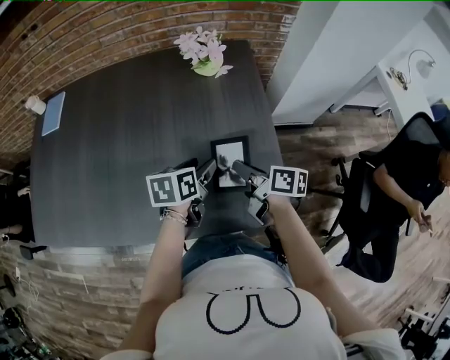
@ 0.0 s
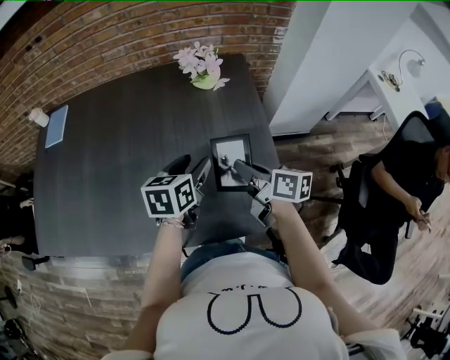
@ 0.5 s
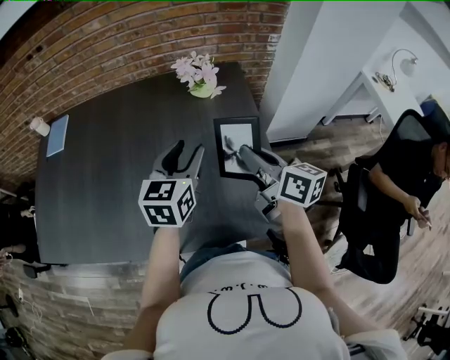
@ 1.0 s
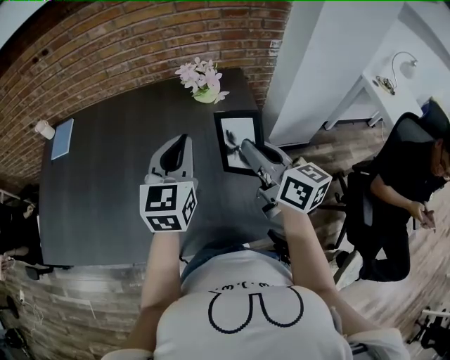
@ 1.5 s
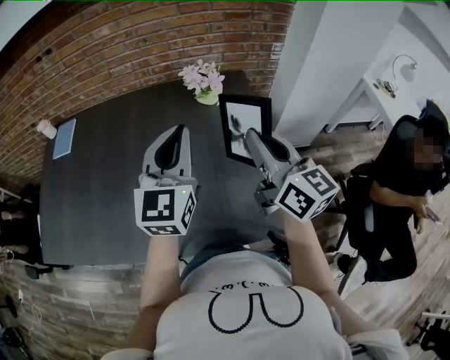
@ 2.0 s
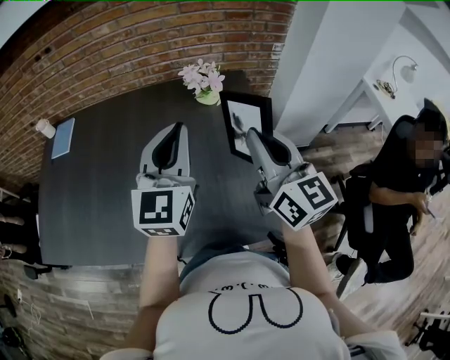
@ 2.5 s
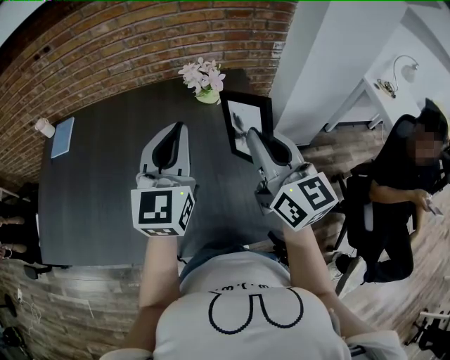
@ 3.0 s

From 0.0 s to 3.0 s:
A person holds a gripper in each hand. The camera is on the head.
From 0.0 s to 1.5 s: Both grippers move upward, some 20 cm. The left gripper angles its fingers upward, by about 30 degrees, and closes. The right gripper turns by roughly 40 degrees.
From 1.5 s to 3.0 s: The grippers both shift upward by some 5 cm. The right gripper turns by about 20 degrees.

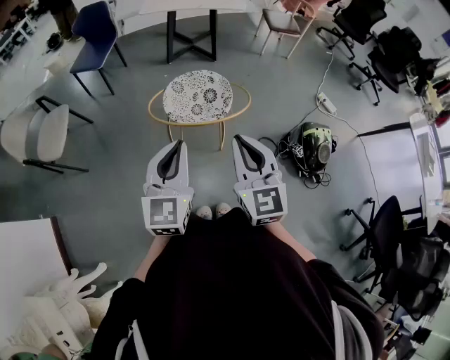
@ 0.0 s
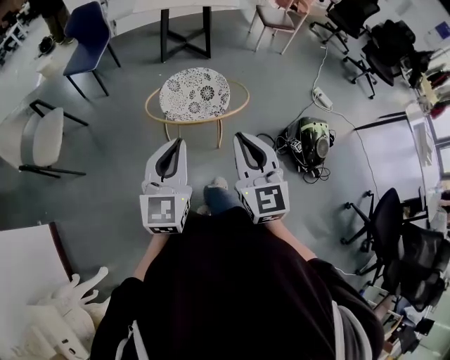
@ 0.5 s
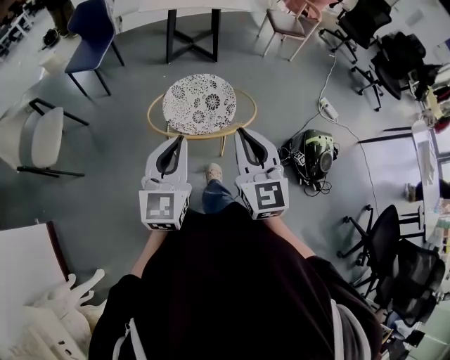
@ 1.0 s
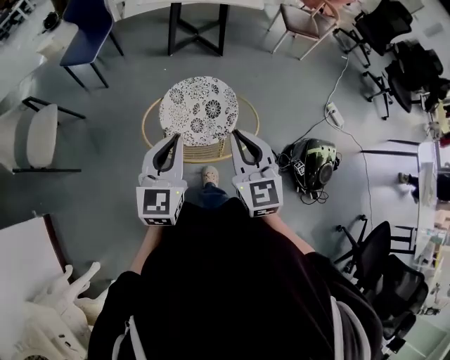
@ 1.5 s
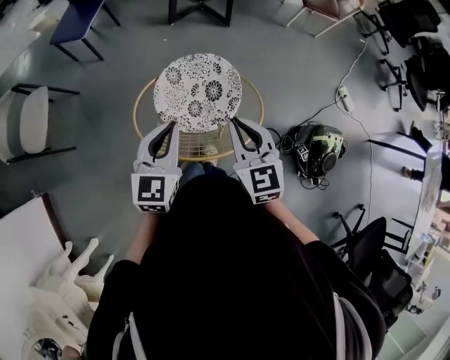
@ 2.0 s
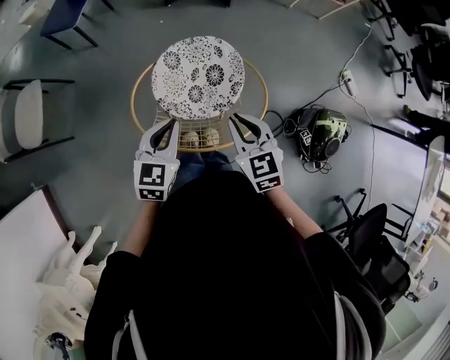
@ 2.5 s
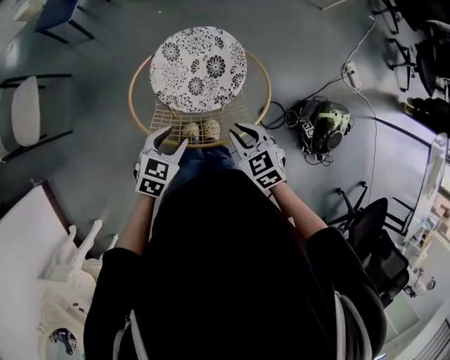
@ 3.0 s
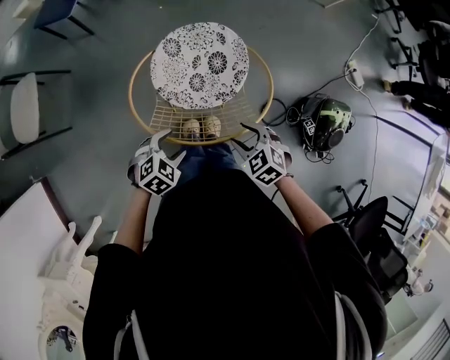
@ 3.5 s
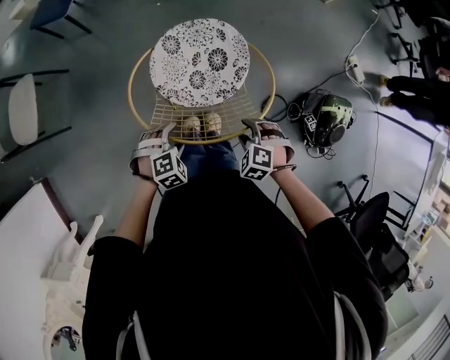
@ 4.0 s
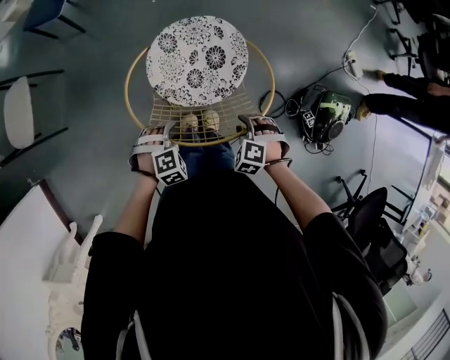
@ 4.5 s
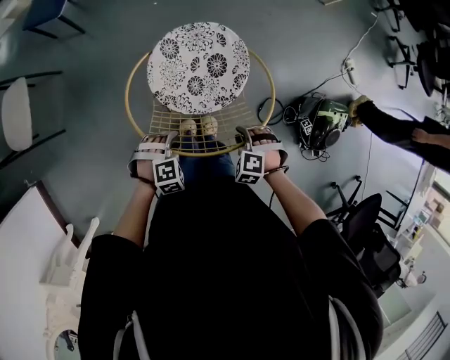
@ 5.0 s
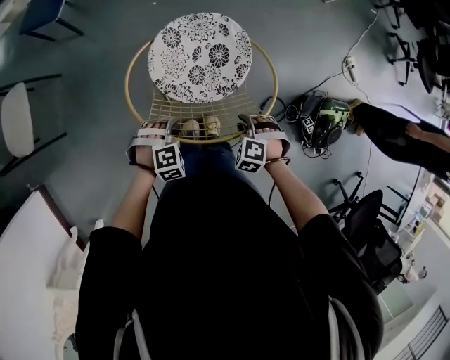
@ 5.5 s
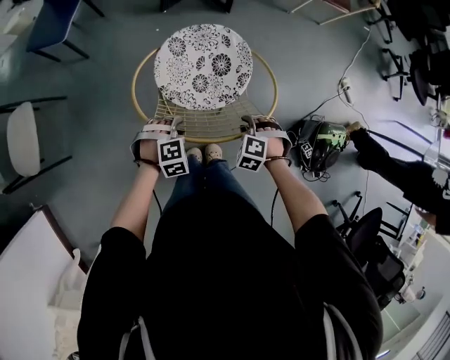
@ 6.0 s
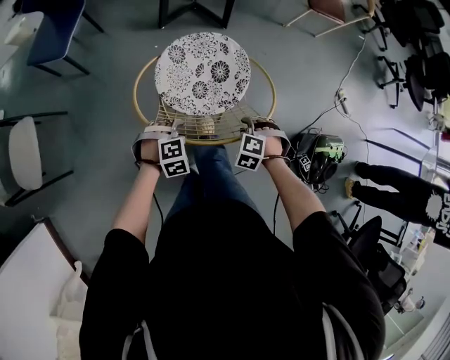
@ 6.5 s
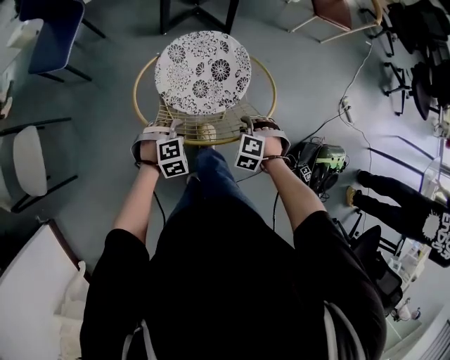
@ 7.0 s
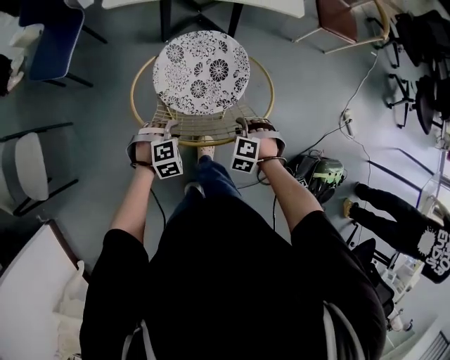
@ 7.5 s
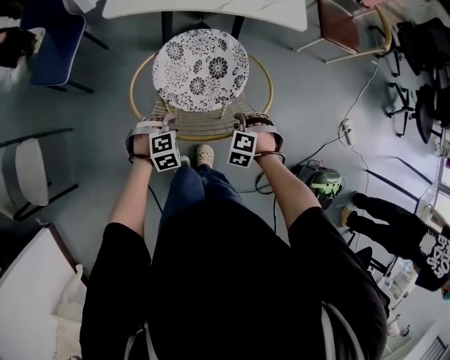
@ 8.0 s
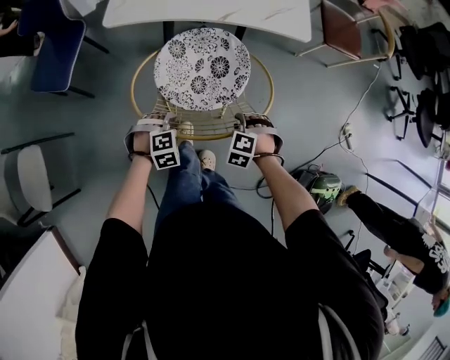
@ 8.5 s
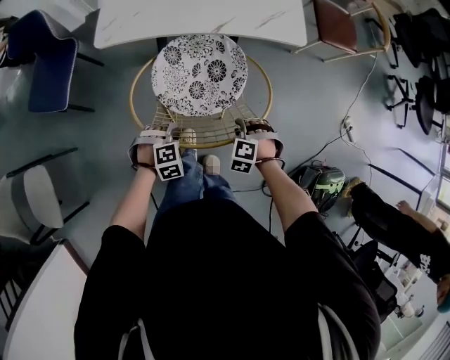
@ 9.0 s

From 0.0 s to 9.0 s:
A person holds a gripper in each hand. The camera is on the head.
From 0.0 s to 2.0 s: The two grippers go about 30 cm forward and downward. The right gripper swivels roughly 20 degrees.
From 2.0 s to 4.5 s: Both grippers move downward, some 25 cm. The right gripper angles its fingers downward, by approximately 50 degrees, and opens up, while the left gripper tilts its fingers some 50 degrees downward, and opens its fingers.
From 4.5 s to 7.0 s: The right gripper moves approximately 30 cm. The left gripper shifts by about 30 cm.
From 7.0 s to 9.0 s: Both grippers travel together forward, roughly 15 cm.

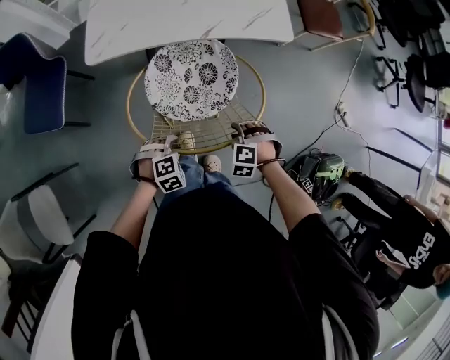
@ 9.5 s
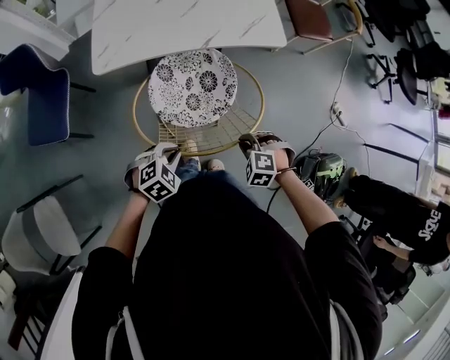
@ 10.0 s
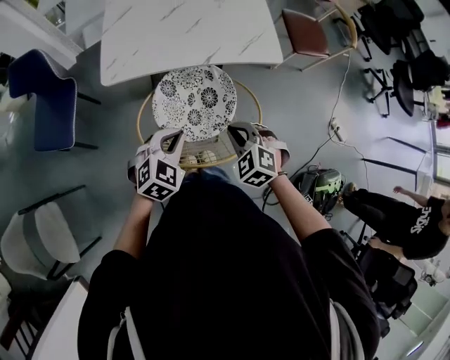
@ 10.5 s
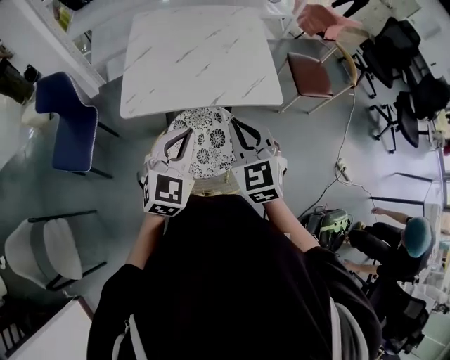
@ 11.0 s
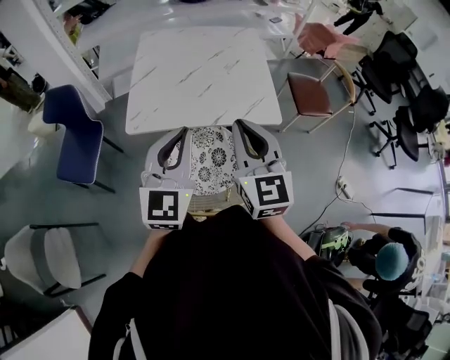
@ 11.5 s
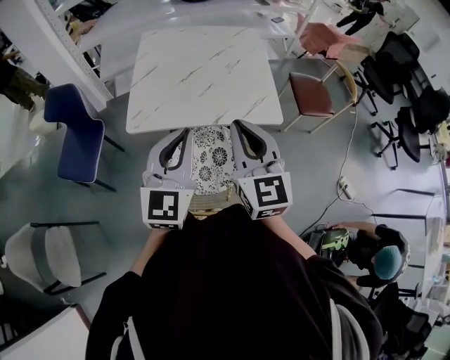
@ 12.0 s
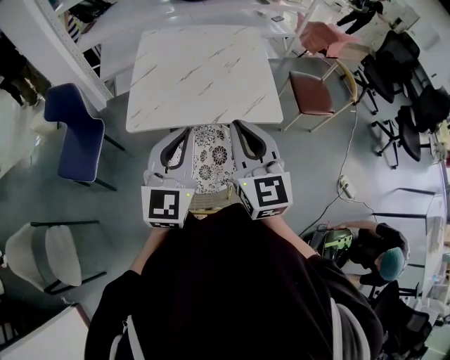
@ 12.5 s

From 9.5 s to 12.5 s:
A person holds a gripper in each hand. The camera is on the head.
From 9.5 s to 11.0 s: The left gripper goes approximately 40 cm upward and forward, points its fingers roughly 50 degrees further upward, and closes up; the right gripper shifts some 40 cm upward, tilts its fingers approximately 60 degrees upward, and closes up.
From 11.0 s to 12.5 s: Both grippers move upward, about 10 cm. The right gripper turns by about 20 degrees; the left gripper changes its angle by roughly 20 degrees.

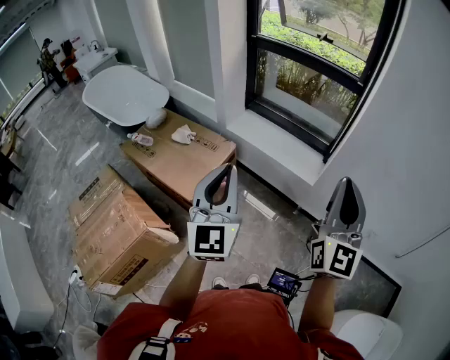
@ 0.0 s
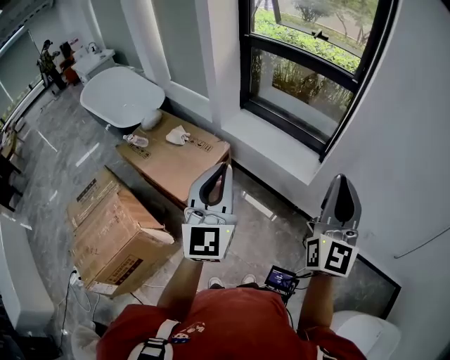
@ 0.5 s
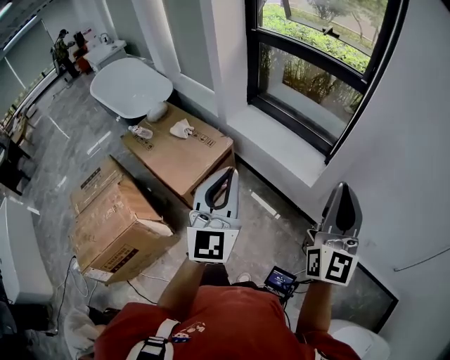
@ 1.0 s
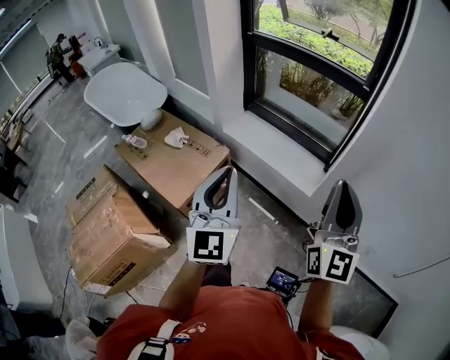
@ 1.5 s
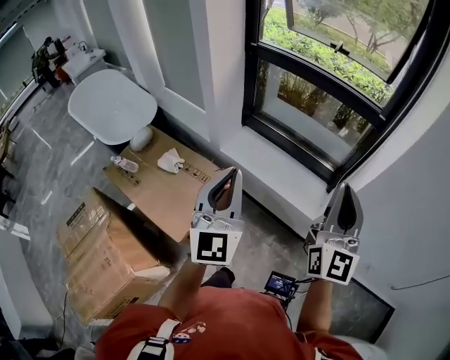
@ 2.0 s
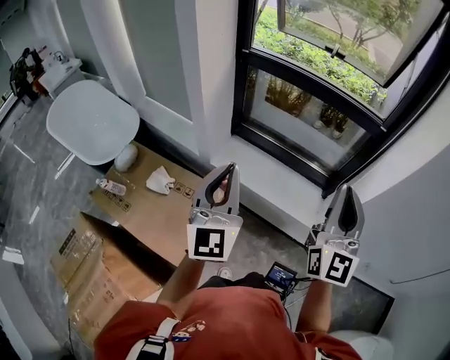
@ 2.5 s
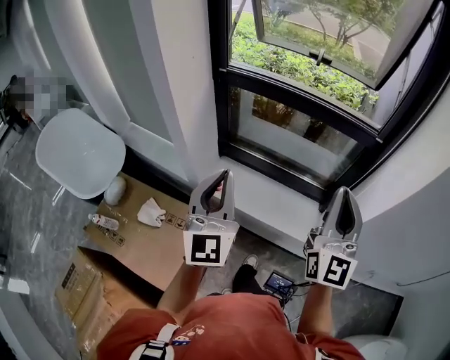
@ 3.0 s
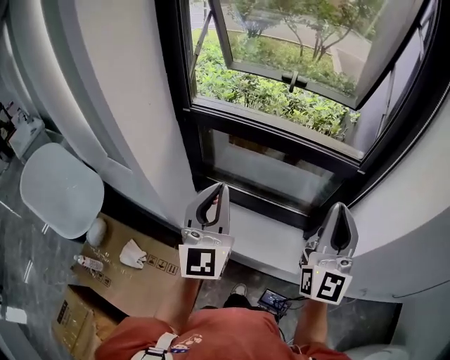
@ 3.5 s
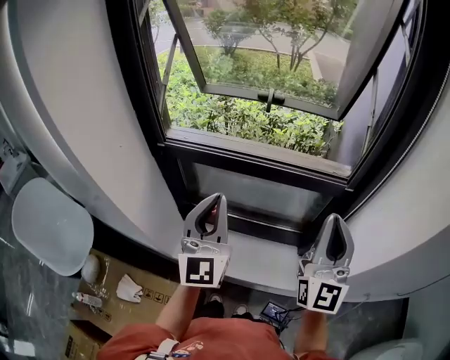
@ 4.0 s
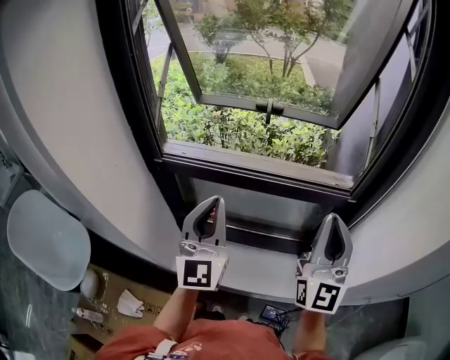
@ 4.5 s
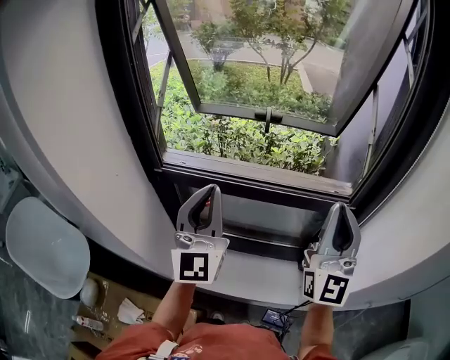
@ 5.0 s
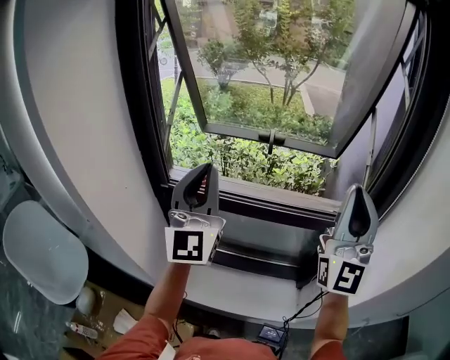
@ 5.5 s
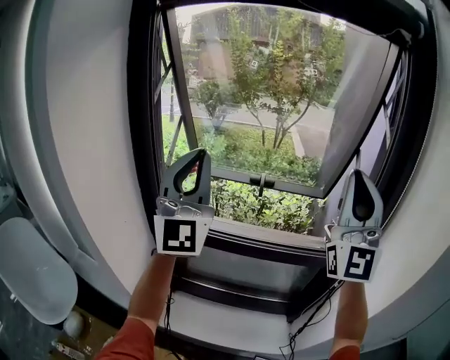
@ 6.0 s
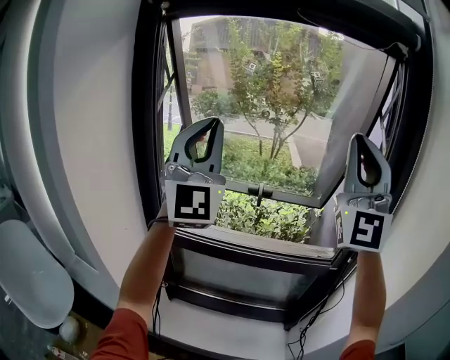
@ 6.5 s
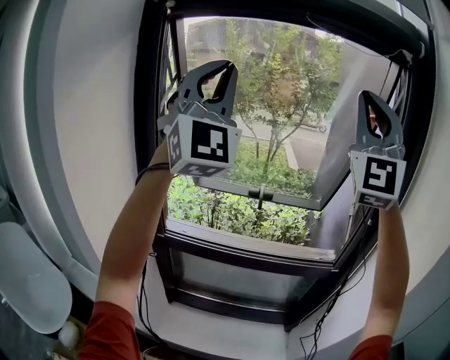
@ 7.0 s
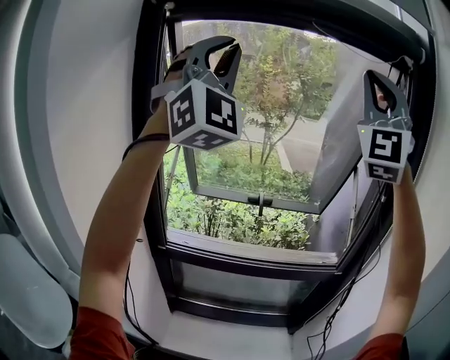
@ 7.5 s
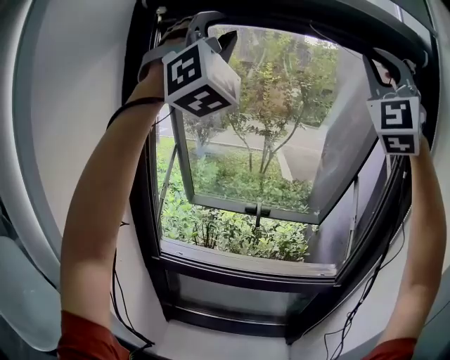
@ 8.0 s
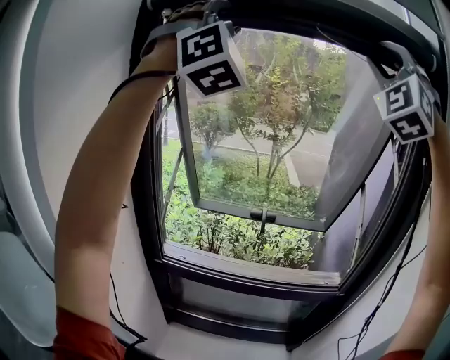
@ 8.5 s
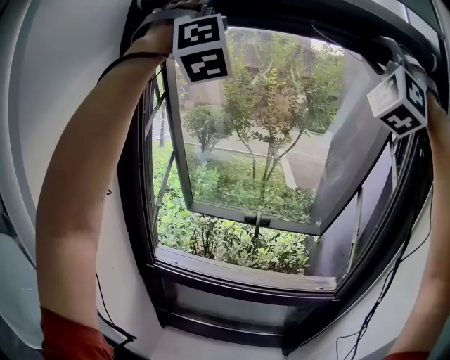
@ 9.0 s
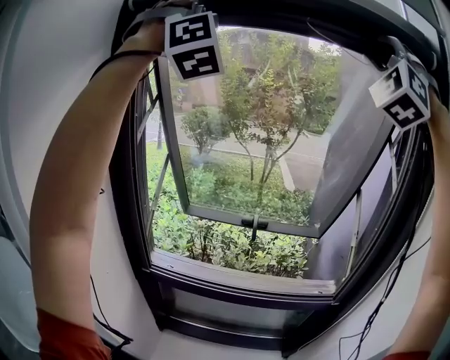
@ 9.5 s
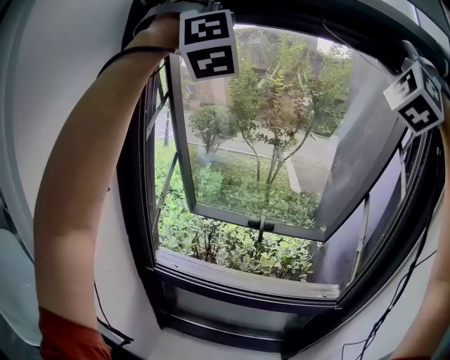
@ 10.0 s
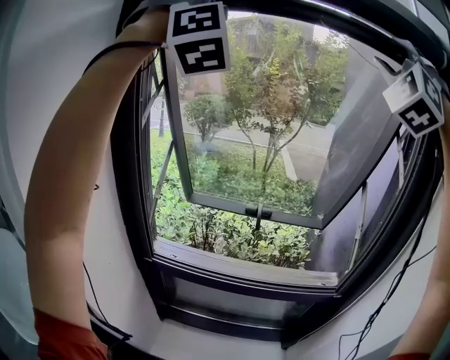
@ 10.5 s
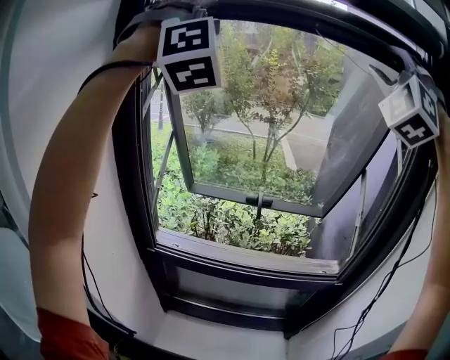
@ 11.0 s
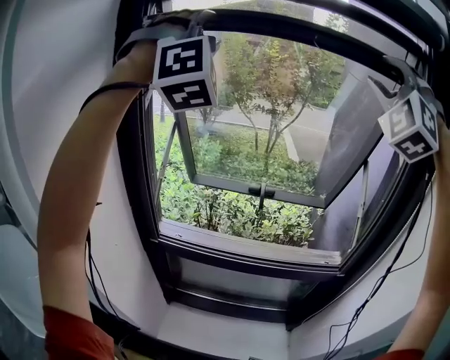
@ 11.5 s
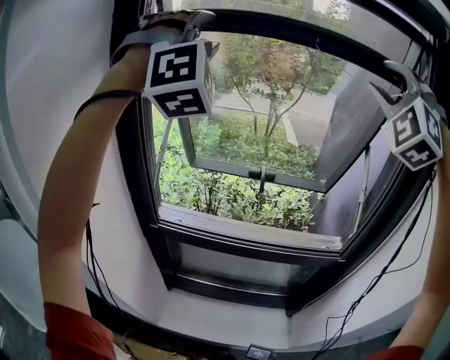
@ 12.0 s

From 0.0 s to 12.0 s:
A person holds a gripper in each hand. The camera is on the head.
From 0.0 s to 2.0 s: Both grippers move forward, roughly 25 cm.
From 2.0 s to 4.0 s: Both grippers move forward, roughly 35 cm. The right gripper turns by some 20 degrees, while the left gripper rotates about 20 degrees.
From 4.0 s to 6.0 s: The grippers both shift upward by roughly 25 cm. The right gripper changes its angle by approximately 30 degrees; the left gripper changes its angle by about 30 degrees.
From 6.0 s to 8.0 s: Both grippers move upward, roughly 30 cm. The left gripper rotates around the line of its fingers by some 50 degrees, clockwise from behind, and opens its fingers. Meanwhile the right gripper rolls counterclockwise, seen from behind, by approximately 40 degrees.
From 8.0 s to 10.0 s: Both grippers travel together forward, about 5 cm. The right gripper rotates approximately 30 degrees, and opens its fingers. Meanwhile the left gripper rotates about 30 degrees.
From 10.0 s to 12.0 s: The two grippers go some 15 cm downward.
